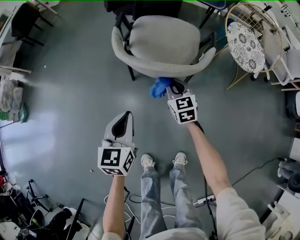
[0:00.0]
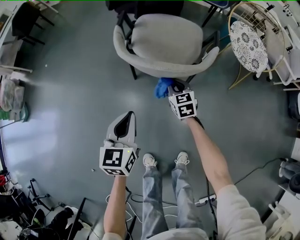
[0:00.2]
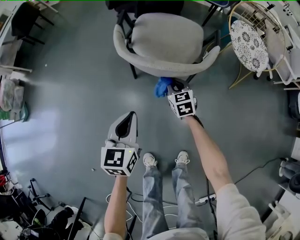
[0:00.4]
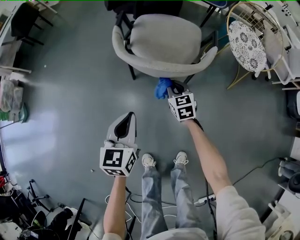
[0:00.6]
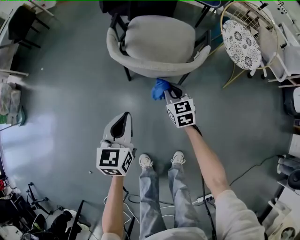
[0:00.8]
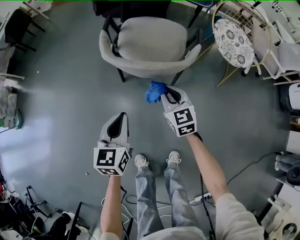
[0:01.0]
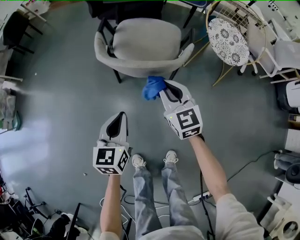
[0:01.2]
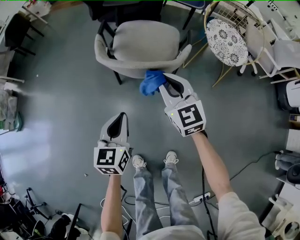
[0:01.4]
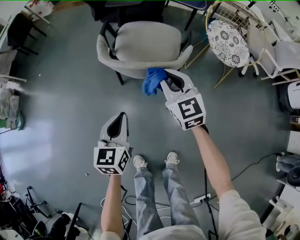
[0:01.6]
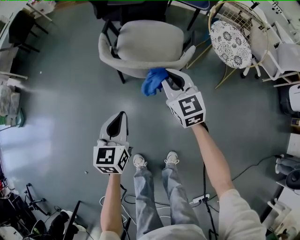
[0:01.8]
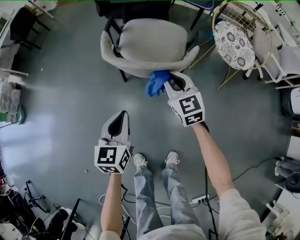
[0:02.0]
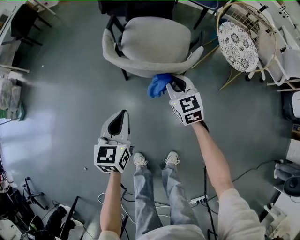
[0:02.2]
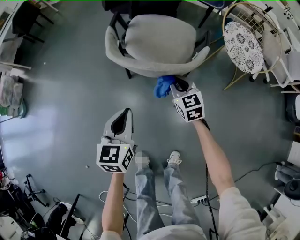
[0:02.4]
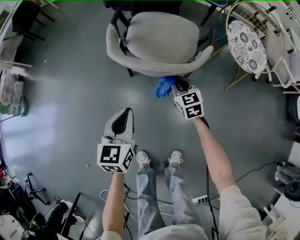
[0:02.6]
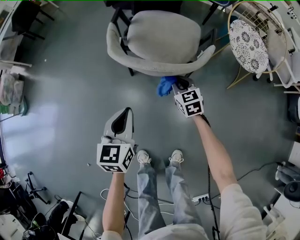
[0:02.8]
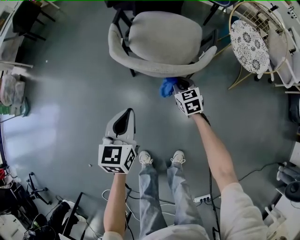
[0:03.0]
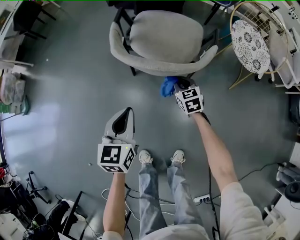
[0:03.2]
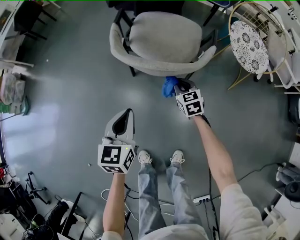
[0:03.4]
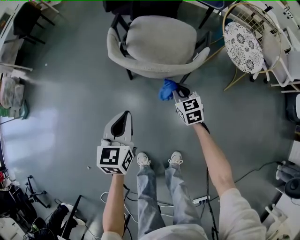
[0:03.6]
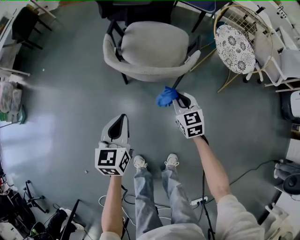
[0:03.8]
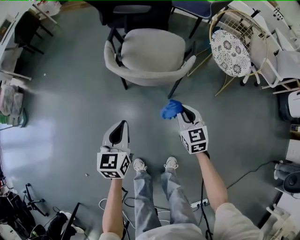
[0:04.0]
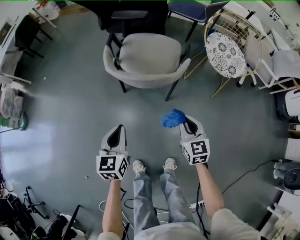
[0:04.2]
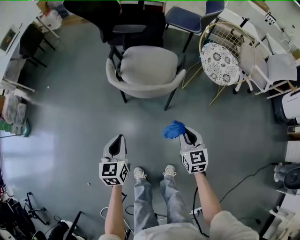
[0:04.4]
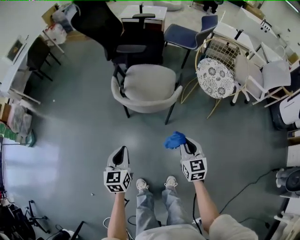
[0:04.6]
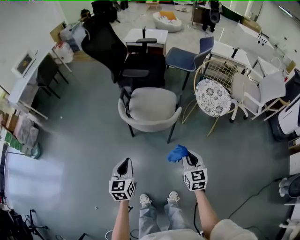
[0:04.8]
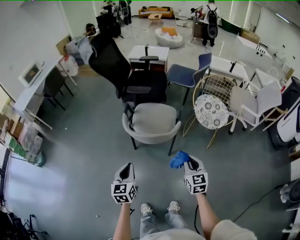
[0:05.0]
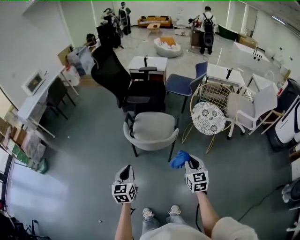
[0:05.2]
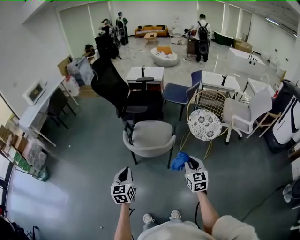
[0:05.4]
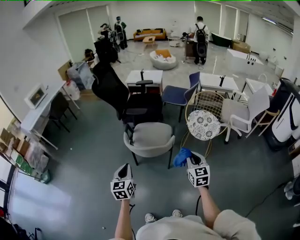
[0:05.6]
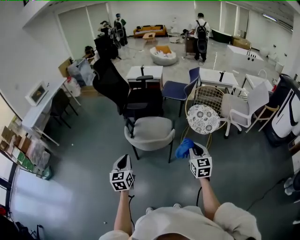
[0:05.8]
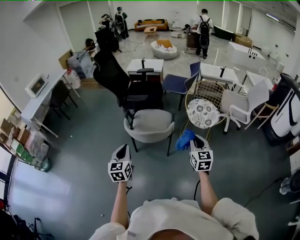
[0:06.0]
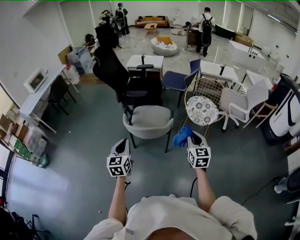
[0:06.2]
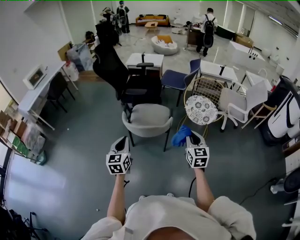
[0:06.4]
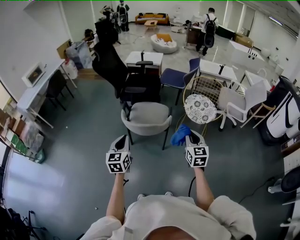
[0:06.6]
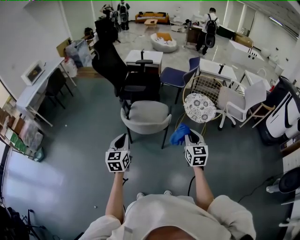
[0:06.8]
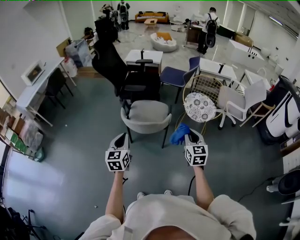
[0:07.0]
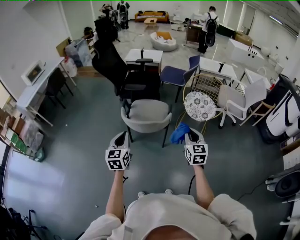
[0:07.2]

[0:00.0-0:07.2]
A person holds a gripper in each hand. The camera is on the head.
0:00.0 to 0:01.4: The right gripper travels upward by roughly 20 cm. Meanwhile the left gripper heads to the right, covering about 5 cm.
0:01.4 to 0:02.8: The right gripper goes some 20 cm downward, and rotates roughly 20 degrees.
0:02.8 to 0:04.4: The left gripper shifts some 10 cm backward and upward. Meanwhile the right gripper travels backward and upward by approximately 25 cm.
0:04.4 to 0:05.8: The two grippers go about 25 cm upward.
0:05.8 to 0:07.2: The grippers move only a little.

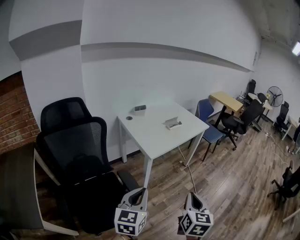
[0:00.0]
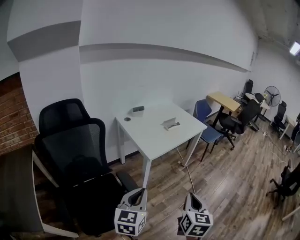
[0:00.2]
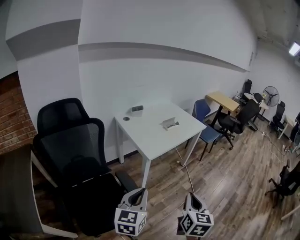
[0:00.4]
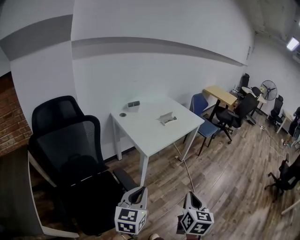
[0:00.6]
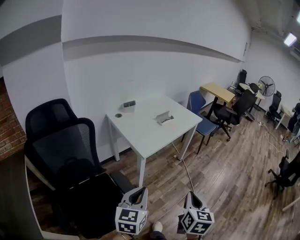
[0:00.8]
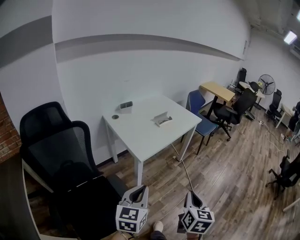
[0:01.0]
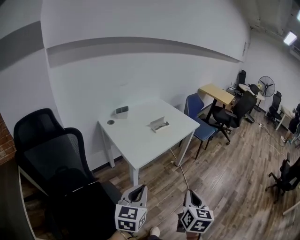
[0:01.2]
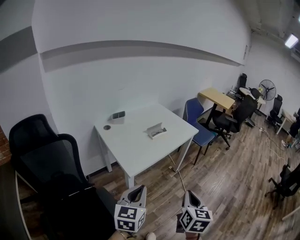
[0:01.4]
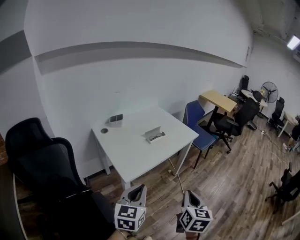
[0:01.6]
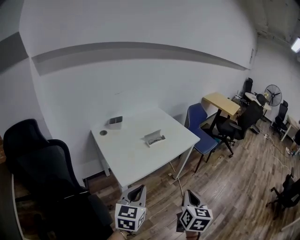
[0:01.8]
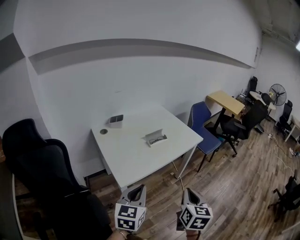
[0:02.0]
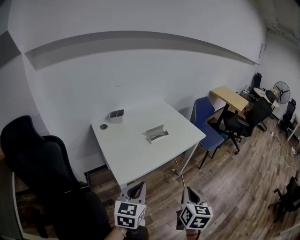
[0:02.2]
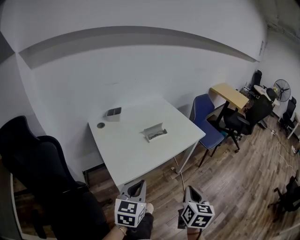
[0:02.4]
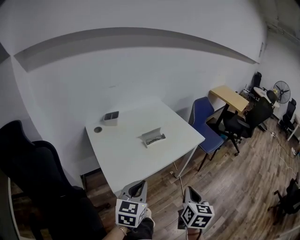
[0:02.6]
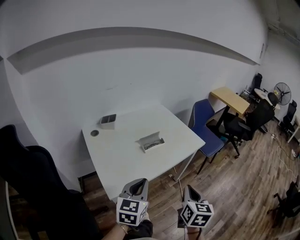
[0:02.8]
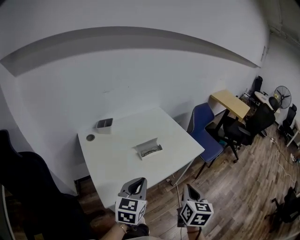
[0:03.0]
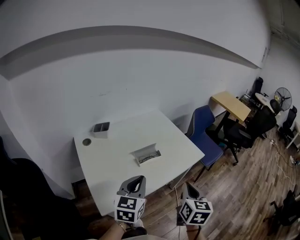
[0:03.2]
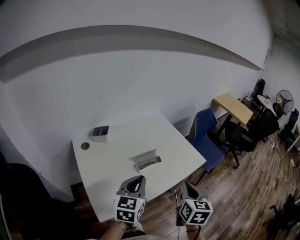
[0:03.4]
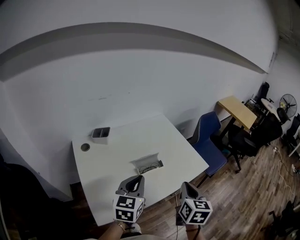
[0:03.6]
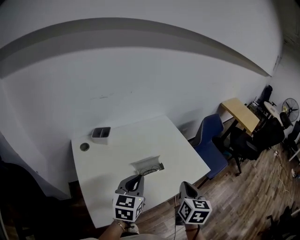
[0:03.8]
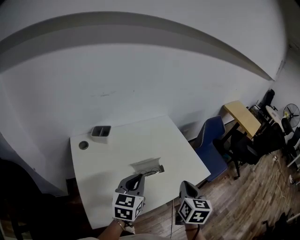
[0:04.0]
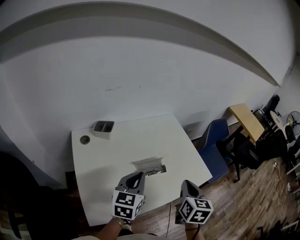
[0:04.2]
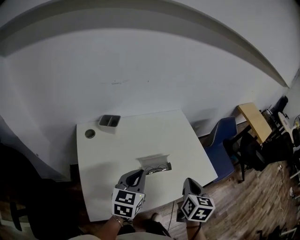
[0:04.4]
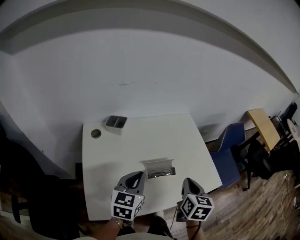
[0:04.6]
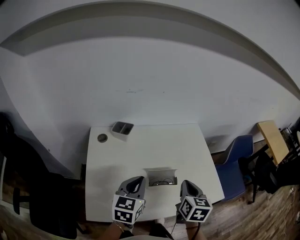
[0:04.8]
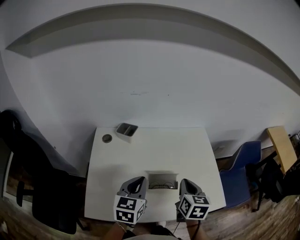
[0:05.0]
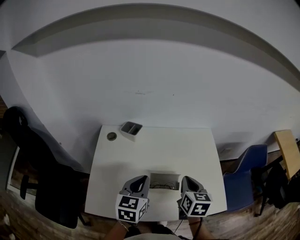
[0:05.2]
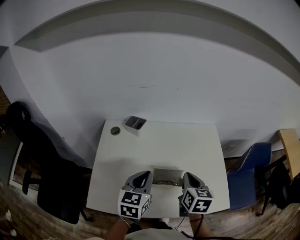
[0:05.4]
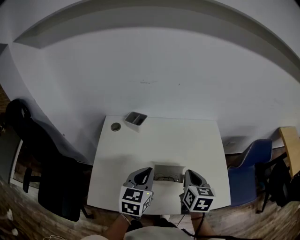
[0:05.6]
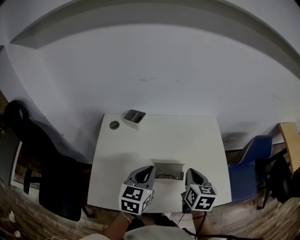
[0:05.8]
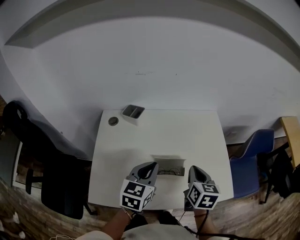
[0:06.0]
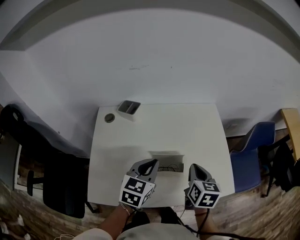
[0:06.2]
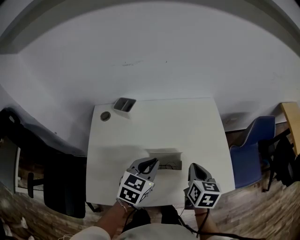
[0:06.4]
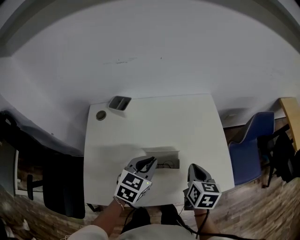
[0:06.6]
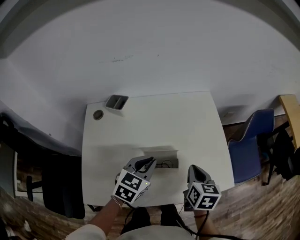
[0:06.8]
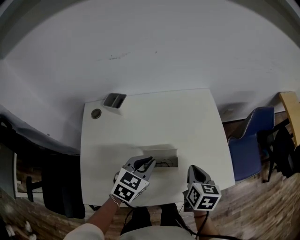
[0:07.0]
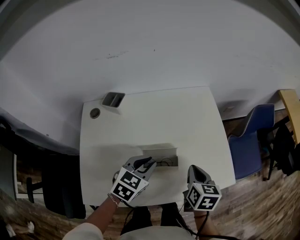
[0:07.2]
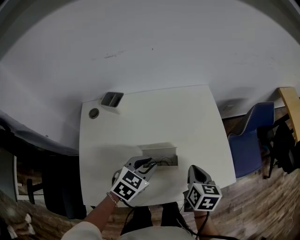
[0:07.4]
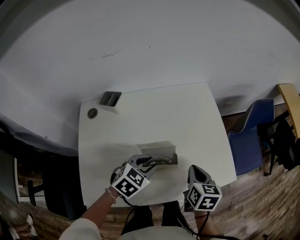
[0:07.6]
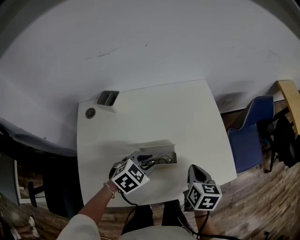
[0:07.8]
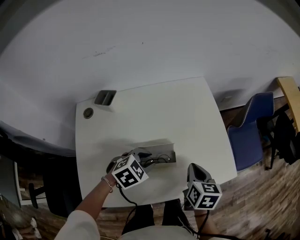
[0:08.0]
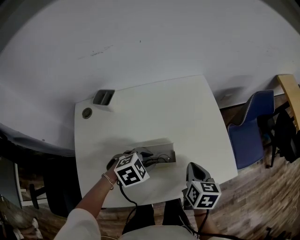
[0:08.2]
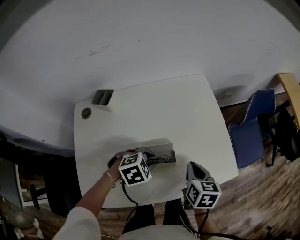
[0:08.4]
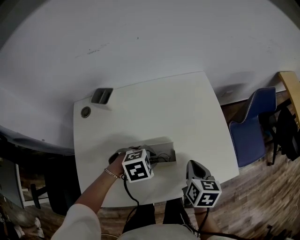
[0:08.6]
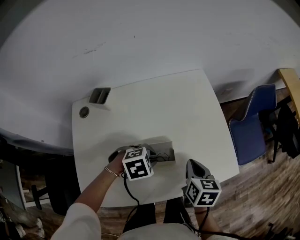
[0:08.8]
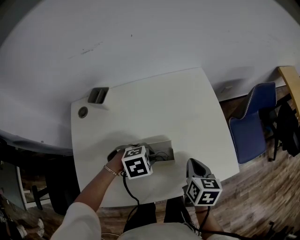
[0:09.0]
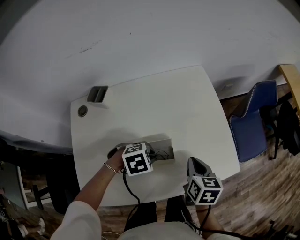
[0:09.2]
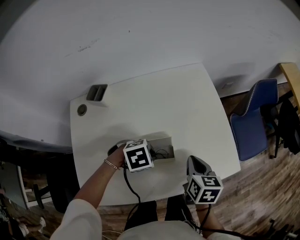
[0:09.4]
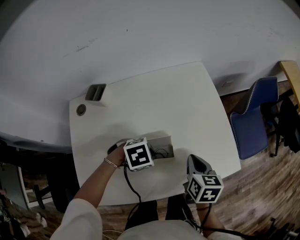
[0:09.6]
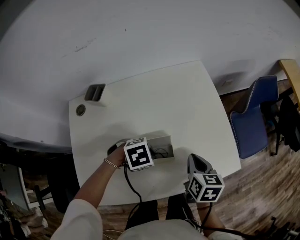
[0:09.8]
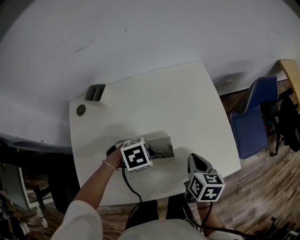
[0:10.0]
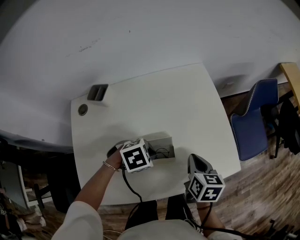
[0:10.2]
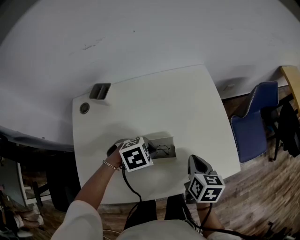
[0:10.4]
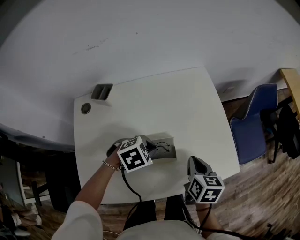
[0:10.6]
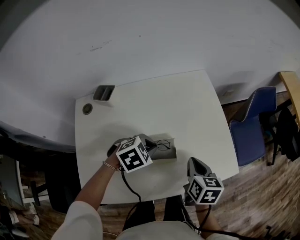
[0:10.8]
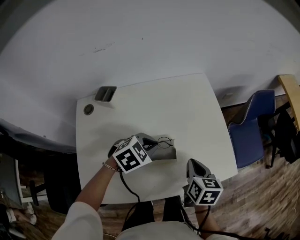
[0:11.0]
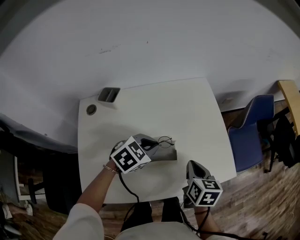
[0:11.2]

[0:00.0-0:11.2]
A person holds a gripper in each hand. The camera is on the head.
0:00.0 to 0:01.6: Both grippers travel together forward, approximately 20 cm.
0:01.6 to 0:03.2: Both grippers travel together forward, roughly 25 cm.
0:03.2 to 0:04.8: The right gripper shifts approximately 20 cm forward, and turns by some 30 degrees, while the left gripper moves forward and to the left, roughly 15 cm, and swivels some 20 degrees.
0:04.8 to 0:06.4: The left gripper moves to the right, about 5 cm. Meanwhile the right gripper shifts by approximately 5 cm.
0:06.4 to 0:08.0: The left gripper goes about 10 cm downward, rotates about 40 degrees, and opens, while the right gripper shifts by some 5 cm.
0:08.0 to 0:09.6: The left gripper turns by approximately 30 degrees, and closes up.
0:09.6 to 0:11.2: The left gripper heads upward, covering approximately 10 cm, and turns by some 40 degrees.

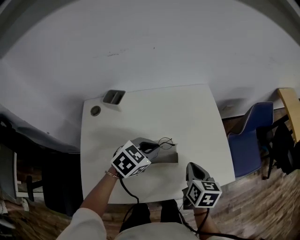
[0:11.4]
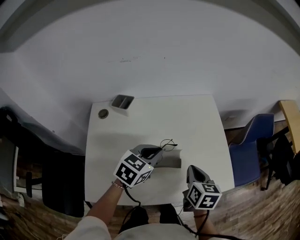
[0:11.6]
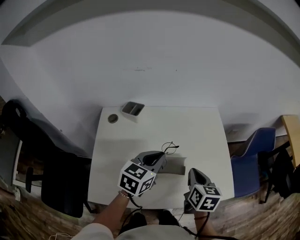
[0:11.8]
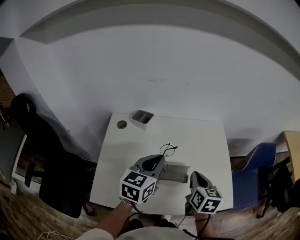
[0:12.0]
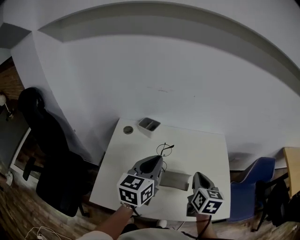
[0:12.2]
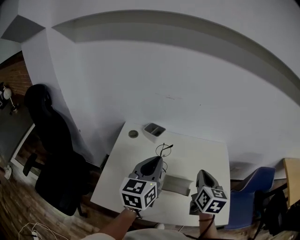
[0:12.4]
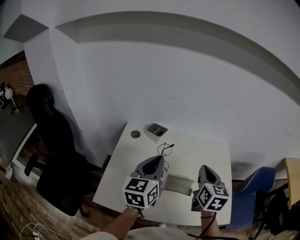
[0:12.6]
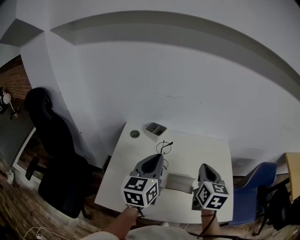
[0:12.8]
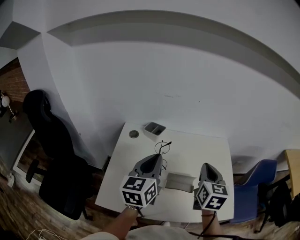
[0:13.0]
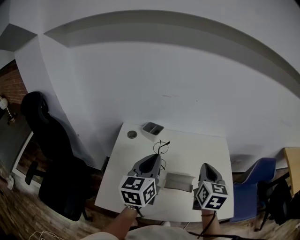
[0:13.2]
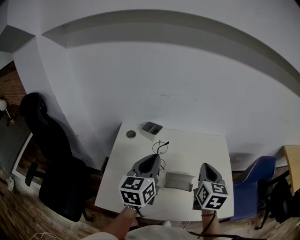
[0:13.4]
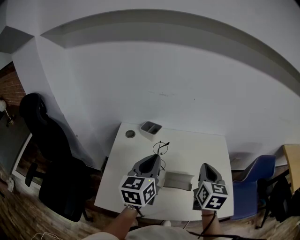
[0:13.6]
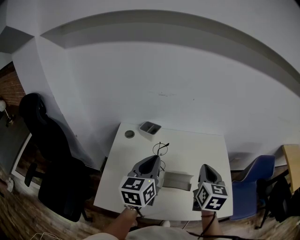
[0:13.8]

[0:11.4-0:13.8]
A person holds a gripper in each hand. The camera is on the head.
0:11.4 to 0:12.6: Both grippers move upward, some 15 cm. The right gripper turns by some 30 degrees; the left gripper tips its fingers upward by roughly 40 degrees.
0:12.6 to 0:13.8: The grippers make only small movements.

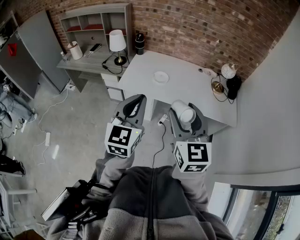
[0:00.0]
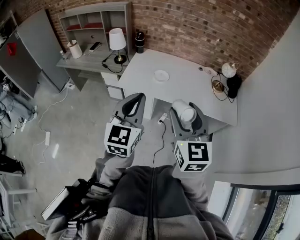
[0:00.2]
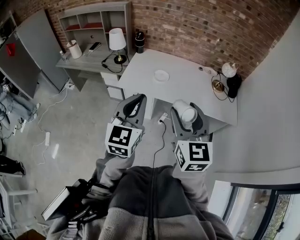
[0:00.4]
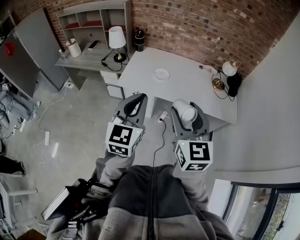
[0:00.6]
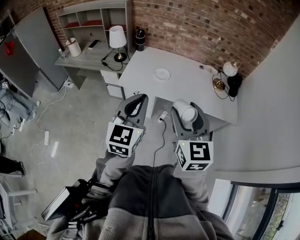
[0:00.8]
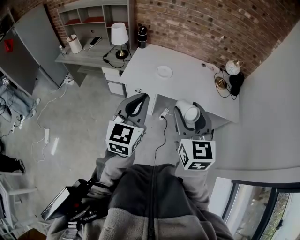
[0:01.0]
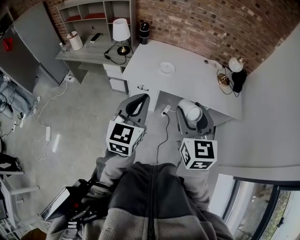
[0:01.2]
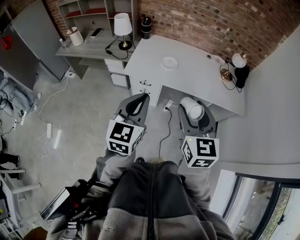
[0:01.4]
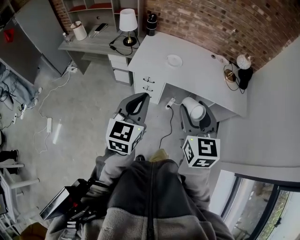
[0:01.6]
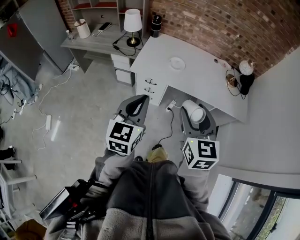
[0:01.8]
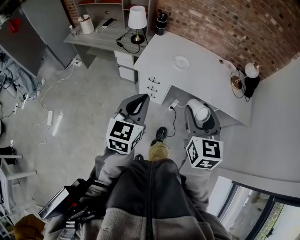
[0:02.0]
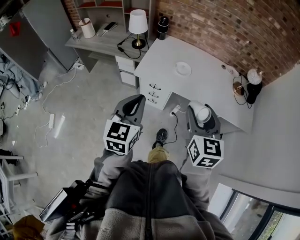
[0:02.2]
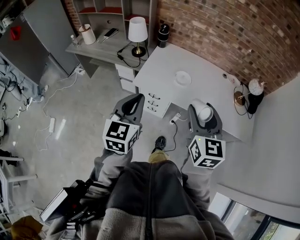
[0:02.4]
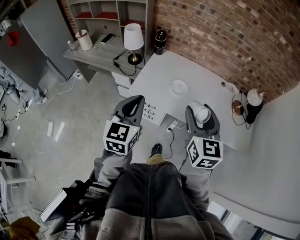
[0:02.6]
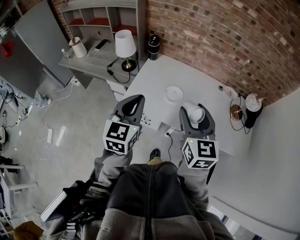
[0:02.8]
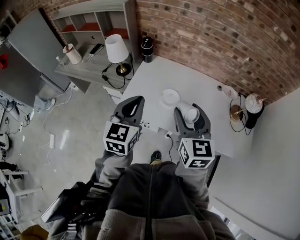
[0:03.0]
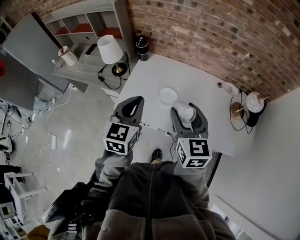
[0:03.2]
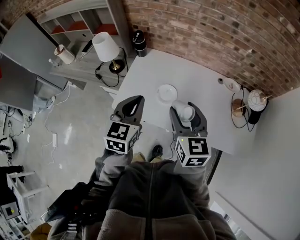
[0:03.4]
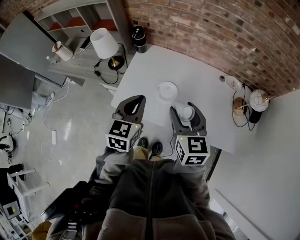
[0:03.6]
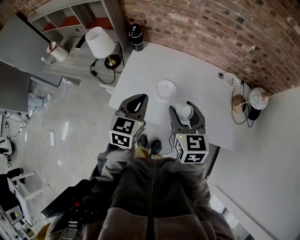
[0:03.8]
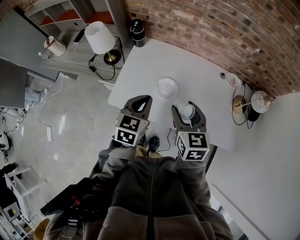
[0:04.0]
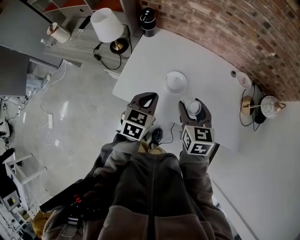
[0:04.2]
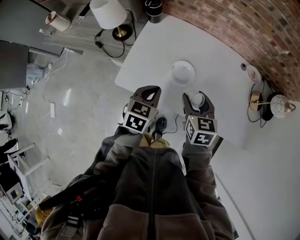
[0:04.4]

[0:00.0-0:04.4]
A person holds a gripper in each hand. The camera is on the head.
0:00.0 to 0:01.4: The right gripper ends up some 5 cm from where it was; the left gripper shifts some 10 cm to the left and downward.
0:01.4 to 0:03.0: Both grippers travel together forward, some 30 cm.
0:03.0 to 0:04.4: The grippers both shift downward and forward by about 25 cm. The left gripper turns by approximately 30 degrees; the right gripper rotates about 30 degrees.
